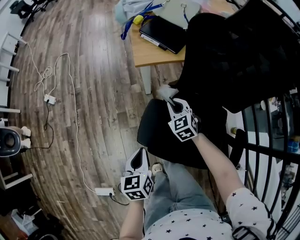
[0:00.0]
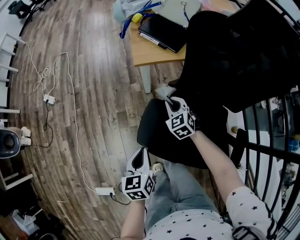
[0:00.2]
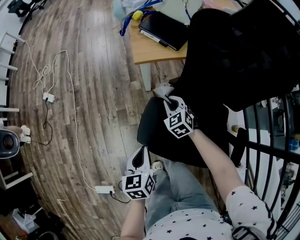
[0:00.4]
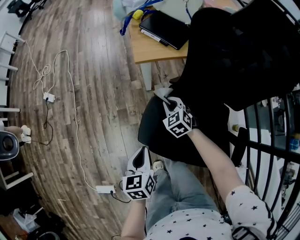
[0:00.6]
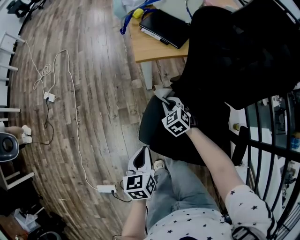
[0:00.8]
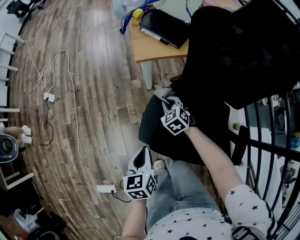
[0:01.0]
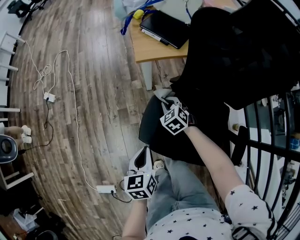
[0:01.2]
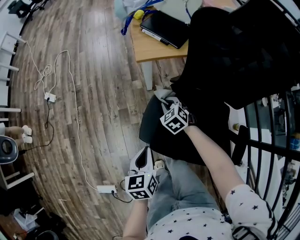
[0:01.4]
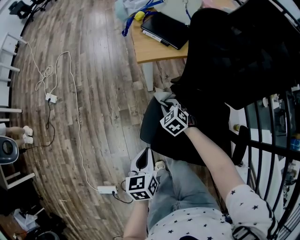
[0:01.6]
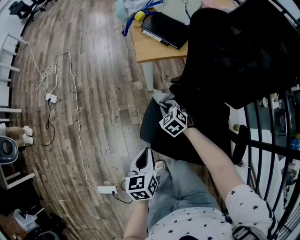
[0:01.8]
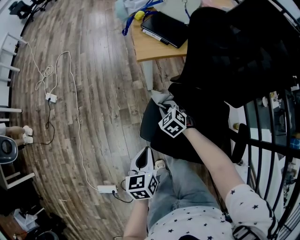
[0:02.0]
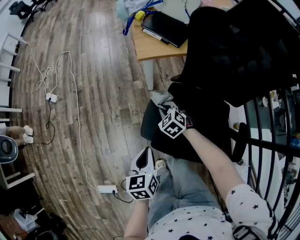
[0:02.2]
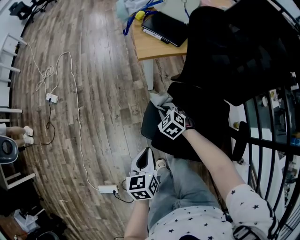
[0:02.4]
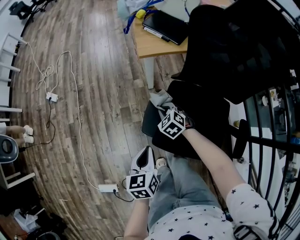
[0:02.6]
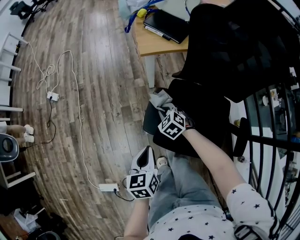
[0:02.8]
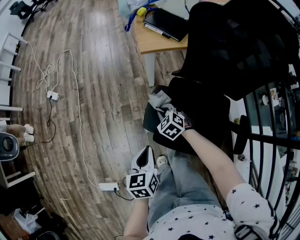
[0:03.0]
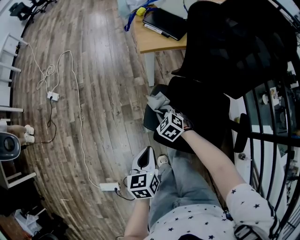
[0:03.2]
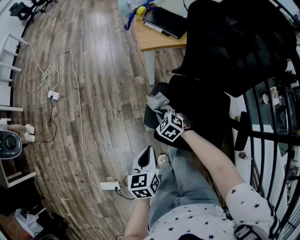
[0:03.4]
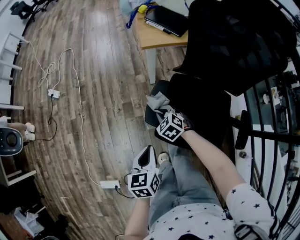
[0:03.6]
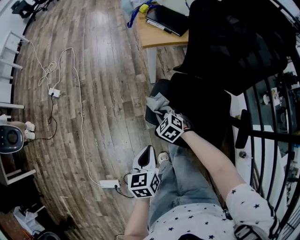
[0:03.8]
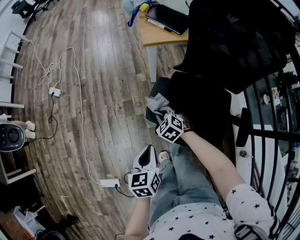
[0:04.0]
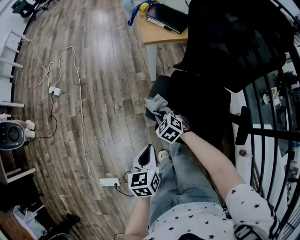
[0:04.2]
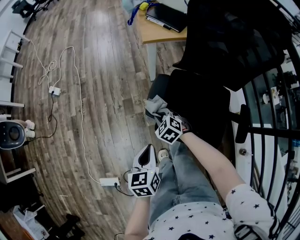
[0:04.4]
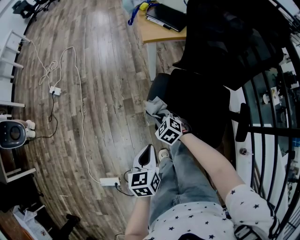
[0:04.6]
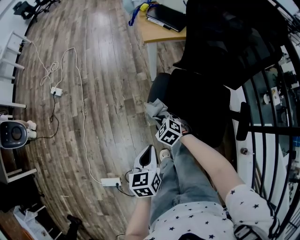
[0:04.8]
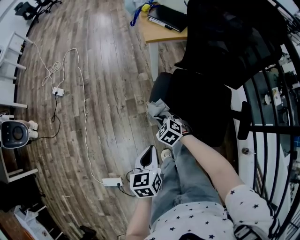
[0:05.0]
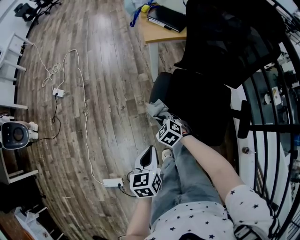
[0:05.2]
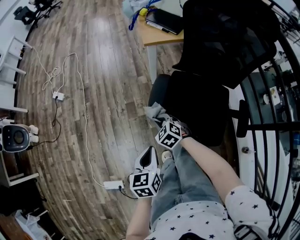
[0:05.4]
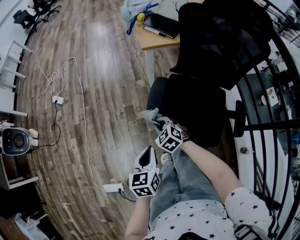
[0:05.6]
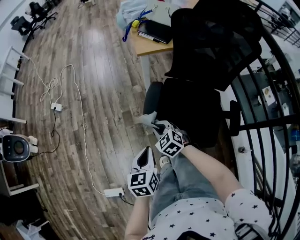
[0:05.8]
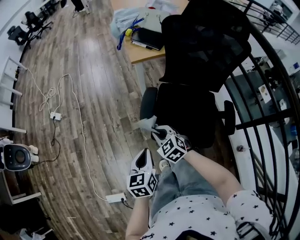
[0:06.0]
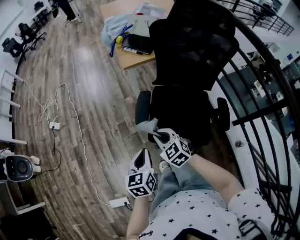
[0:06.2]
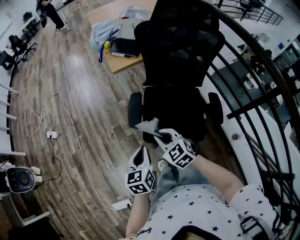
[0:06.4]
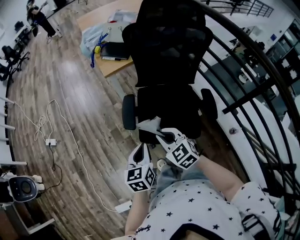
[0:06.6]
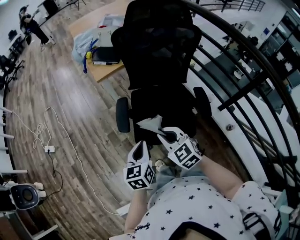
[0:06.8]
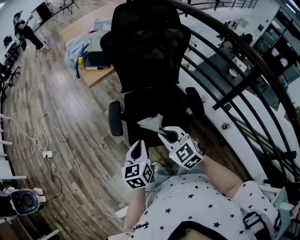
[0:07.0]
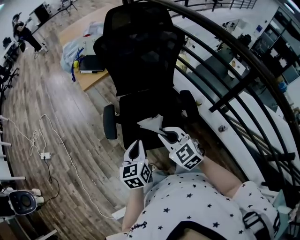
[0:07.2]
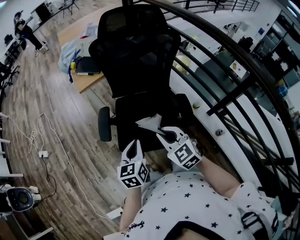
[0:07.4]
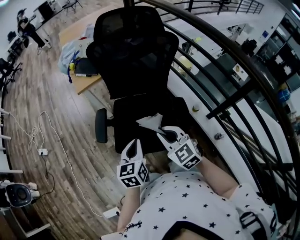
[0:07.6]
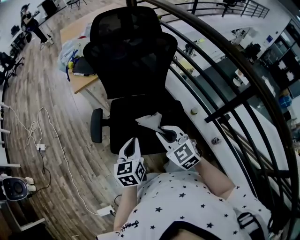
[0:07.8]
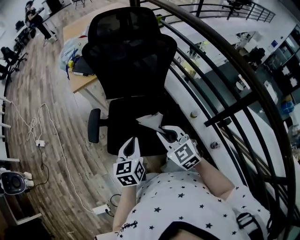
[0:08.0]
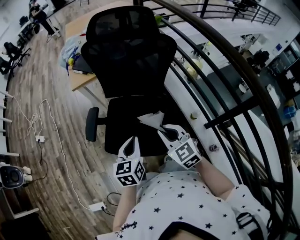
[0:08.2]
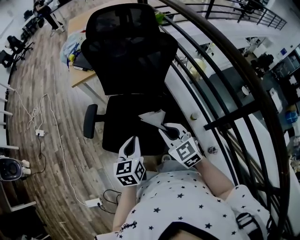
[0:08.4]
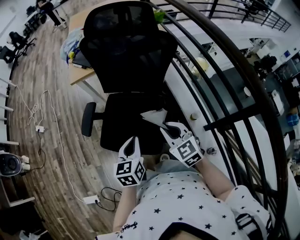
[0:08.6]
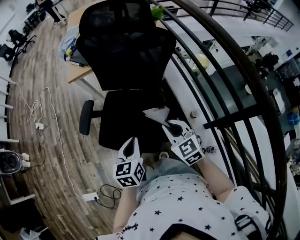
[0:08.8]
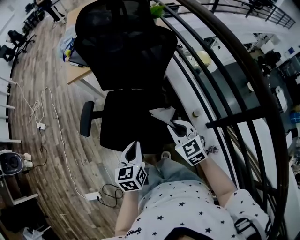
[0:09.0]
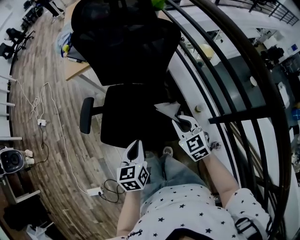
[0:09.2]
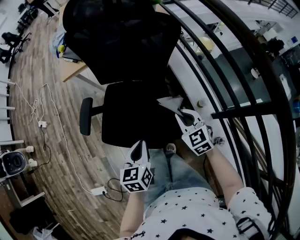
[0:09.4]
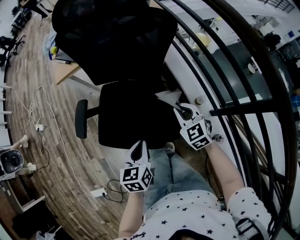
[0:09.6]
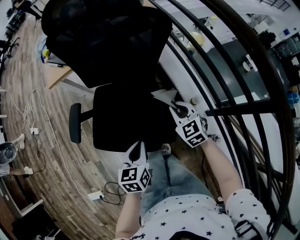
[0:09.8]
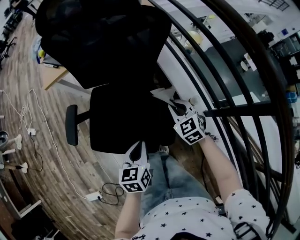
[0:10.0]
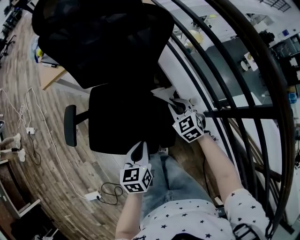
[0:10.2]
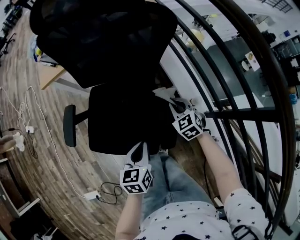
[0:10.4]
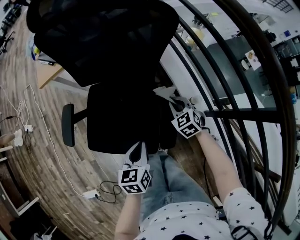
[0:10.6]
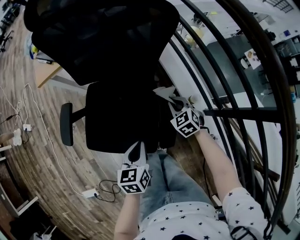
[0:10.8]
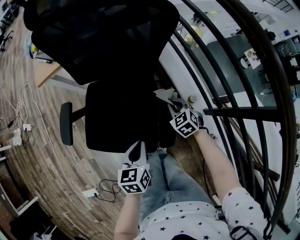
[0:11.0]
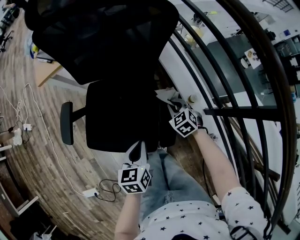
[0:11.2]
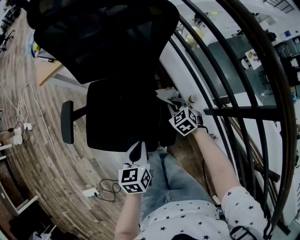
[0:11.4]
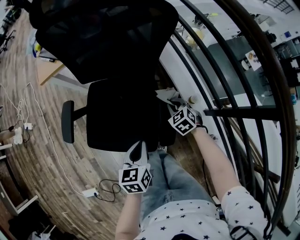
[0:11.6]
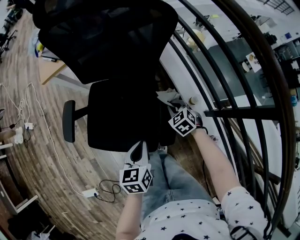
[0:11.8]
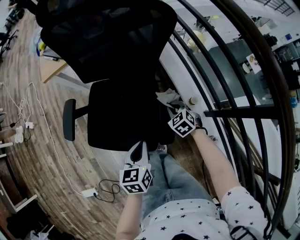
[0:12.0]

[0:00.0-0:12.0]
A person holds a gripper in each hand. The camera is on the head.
0:00.0 to 0:01.6: The right gripper shifts approximately 5 cm downward.
0:01.6 to 0:03.0: The right gripper moves backward and to the left, approximately 10 cm.
0:03.0 to 0:04.4: The right gripper travels backward and to the left by some 10 cm. The left gripper shifts some 5 cm backward.
0:04.4 to 0:06.0: The left gripper shifts about 5 cm upward. The right gripper travels upward and backward by some 15 cm.
0:06.0 to 0:07.6: The left gripper goes roughly 25 cm to the right. The right gripper travels to the right and upward by some 35 cm, and swivels some 20 degrees.
0:07.6 to 0:09.0: Both grippers move to the right, roughly 15 cm.
0:09.0 to 0:10.4: The right gripper shifts about 20 cm downward and forward; the left gripper goes roughly 10 cm downward.
0:10.4 to 0:12.0: The right gripper moves downward, roughly 5 cm.

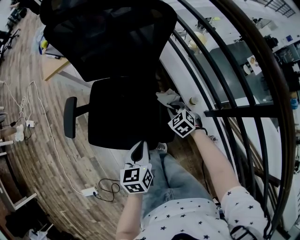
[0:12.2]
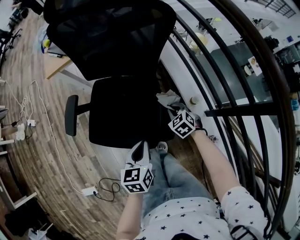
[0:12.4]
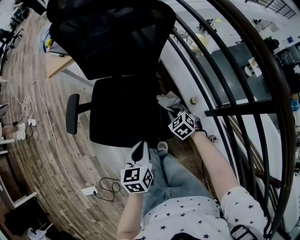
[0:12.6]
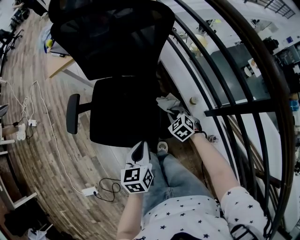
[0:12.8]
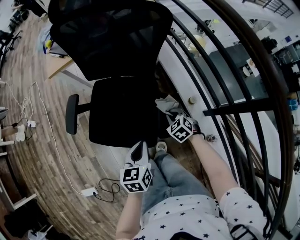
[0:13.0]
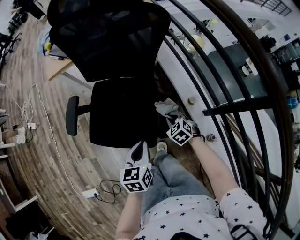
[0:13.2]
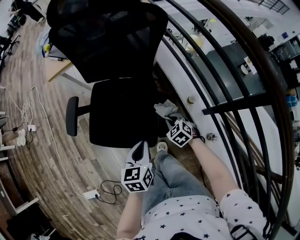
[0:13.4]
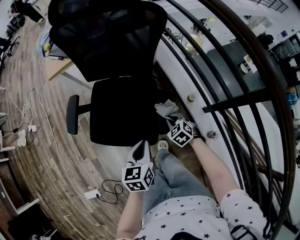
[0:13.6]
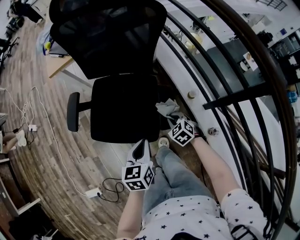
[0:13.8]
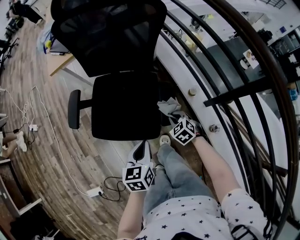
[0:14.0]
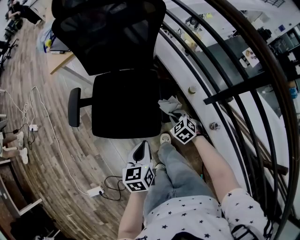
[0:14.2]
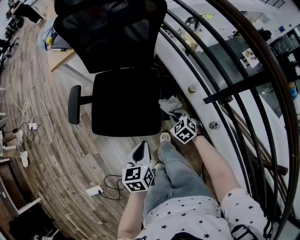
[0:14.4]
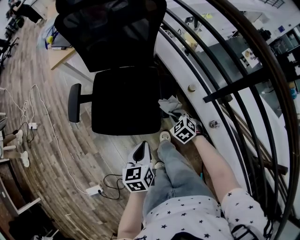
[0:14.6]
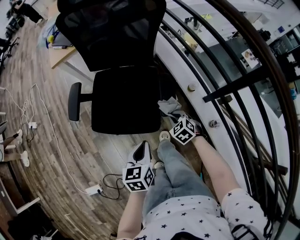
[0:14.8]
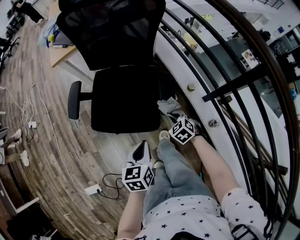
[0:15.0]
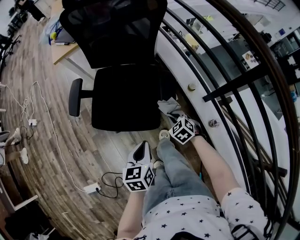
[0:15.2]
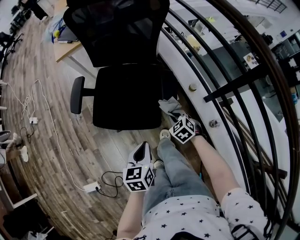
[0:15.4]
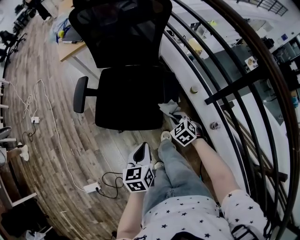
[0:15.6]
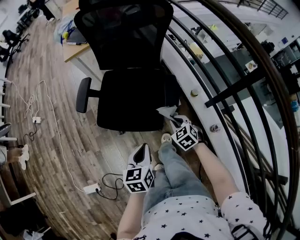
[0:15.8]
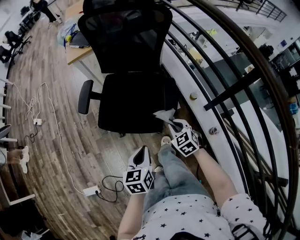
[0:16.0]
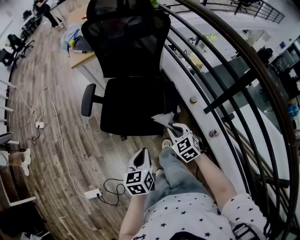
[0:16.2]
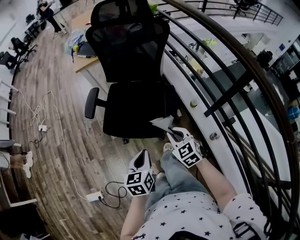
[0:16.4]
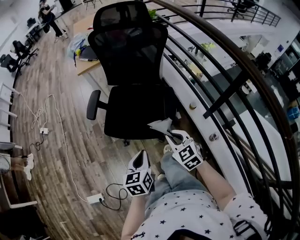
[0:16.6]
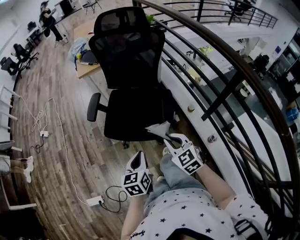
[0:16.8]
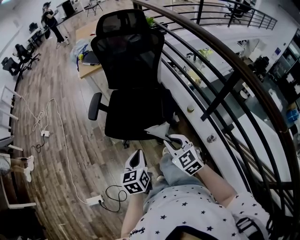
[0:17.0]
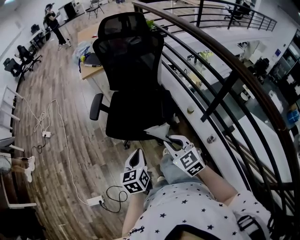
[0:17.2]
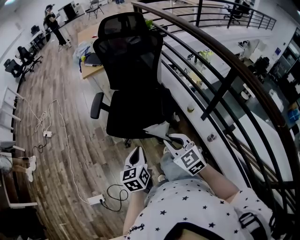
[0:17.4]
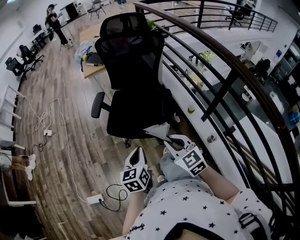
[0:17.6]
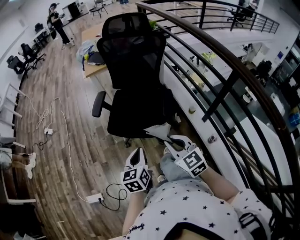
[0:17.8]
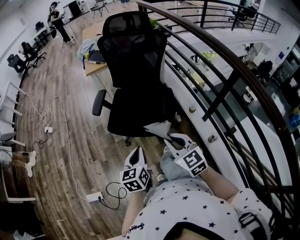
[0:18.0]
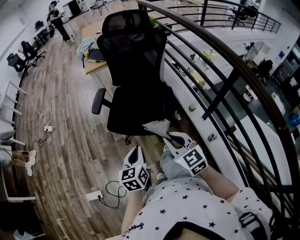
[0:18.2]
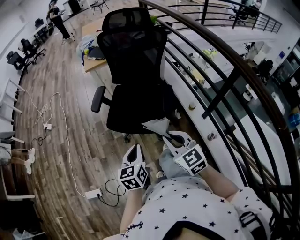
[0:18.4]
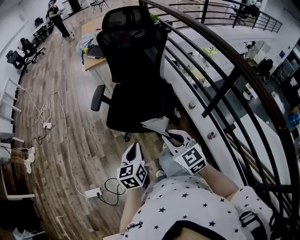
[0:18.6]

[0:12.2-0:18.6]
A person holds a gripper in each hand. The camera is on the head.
0:12.2 to 0:13.8: The left gripper moves backward, about 5 cm. The right gripper shifts approximately 10 cm backward.
0:13.8 to 0:15.4: Both grippers move backward, some 10 cm.
0:15.4 to 0:17.0: The right gripper heads upward and backward, covering some 30 cm, and changes its angle by approximately 30 degrees, while the left gripper heads upward, backward and to the left, covering about 15 cm.
0:17.0 to 0:18.6: The right gripper moves upward, about 5 cm.

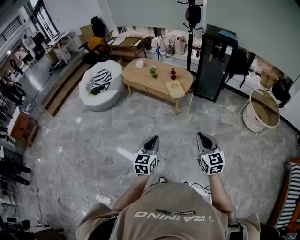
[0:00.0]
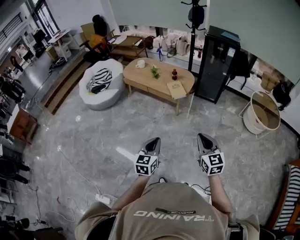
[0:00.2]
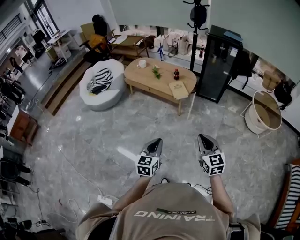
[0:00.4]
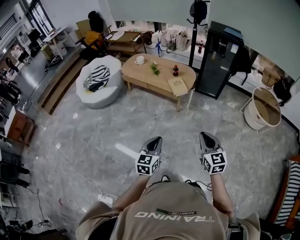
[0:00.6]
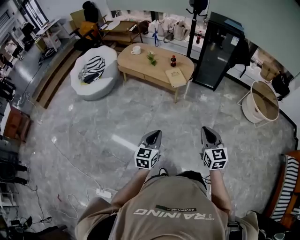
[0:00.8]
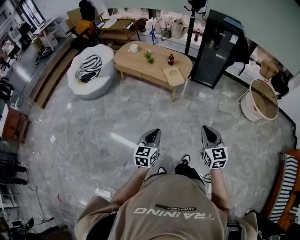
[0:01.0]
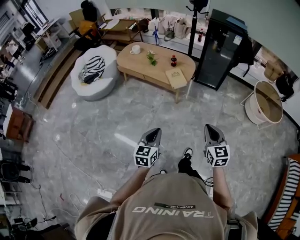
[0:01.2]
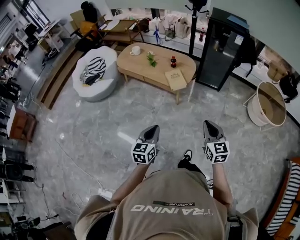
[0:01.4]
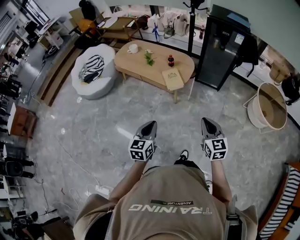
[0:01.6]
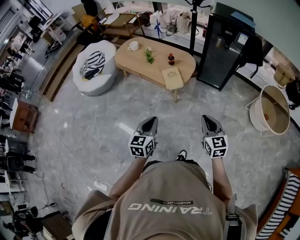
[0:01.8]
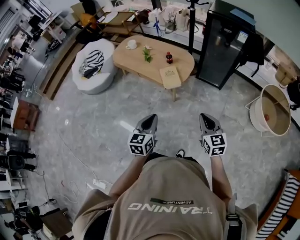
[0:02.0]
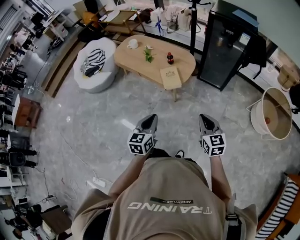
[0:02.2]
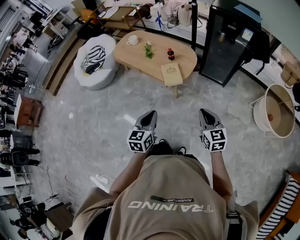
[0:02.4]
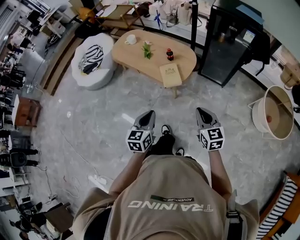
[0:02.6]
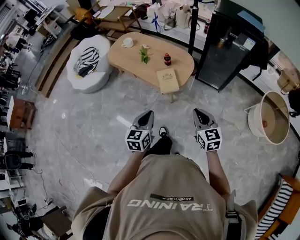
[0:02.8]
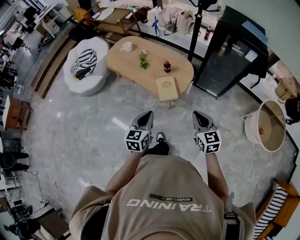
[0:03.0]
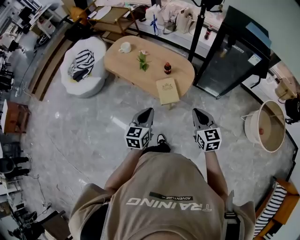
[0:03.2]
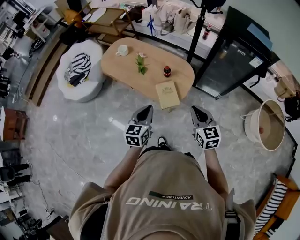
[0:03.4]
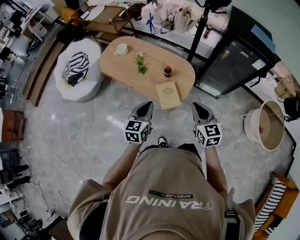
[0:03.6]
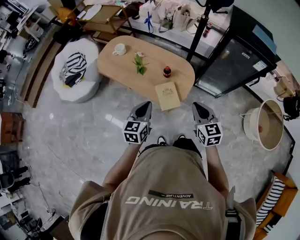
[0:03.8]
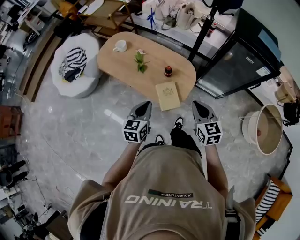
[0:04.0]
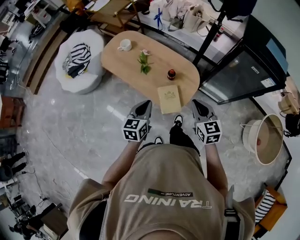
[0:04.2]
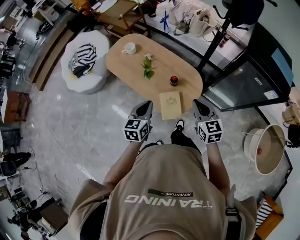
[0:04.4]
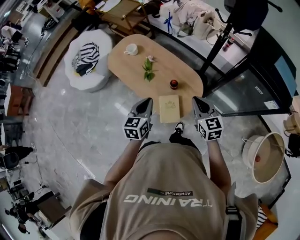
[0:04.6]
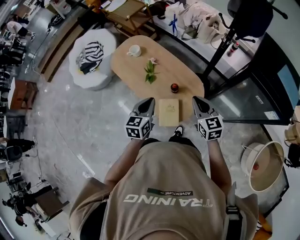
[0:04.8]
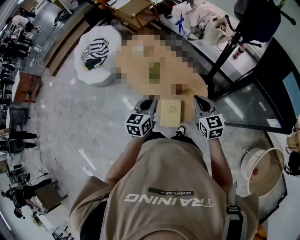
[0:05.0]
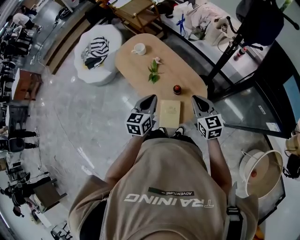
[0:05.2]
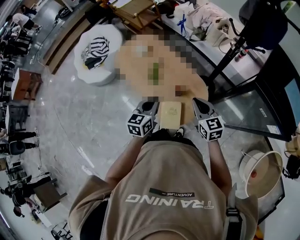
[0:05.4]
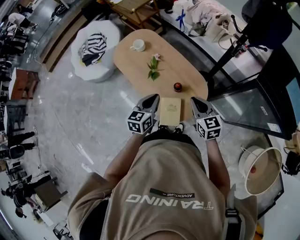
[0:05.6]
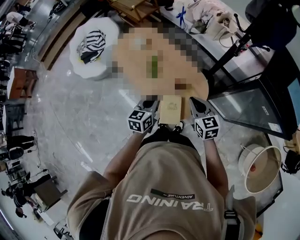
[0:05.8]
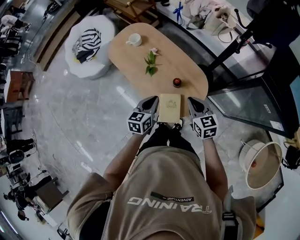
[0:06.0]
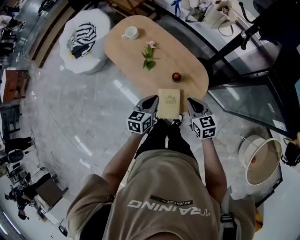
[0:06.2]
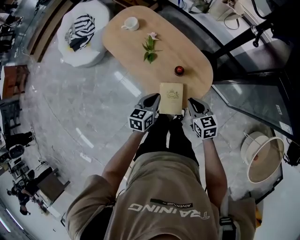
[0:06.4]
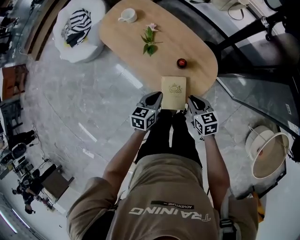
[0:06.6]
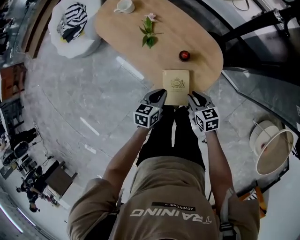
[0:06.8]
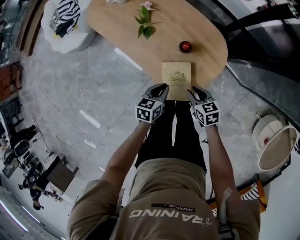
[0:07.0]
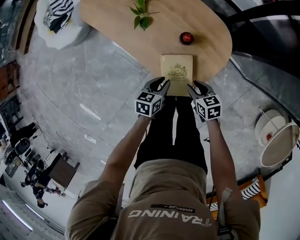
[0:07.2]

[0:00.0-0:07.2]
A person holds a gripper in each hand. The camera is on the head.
0:00.0 to 0:01.4: Both grippers travel together forward, about 15 cm.
0:01.4 to 0:02.8: The right gripper is displaced forward by approximately 25 cm, while the left gripper heads forward and to the right, covering roughly 25 cm.
0:02.8 to 0:04.4: Both grippers move forward, about 35 cm.
0:04.4 to 0:05.8: The left gripper shifts some 10 cm forward and to the right. The right gripper shifts approximately 10 cm forward.
0:05.8 to 0:07.2: The two grippers go some 35 cm downward. The right gripper turns by approximately 30 degrees, and opens its fingers. Meanwhile the left gripper turns by approximately 30 degrees.
